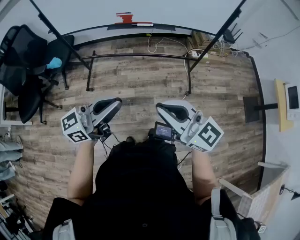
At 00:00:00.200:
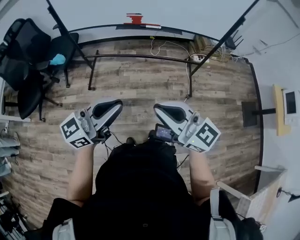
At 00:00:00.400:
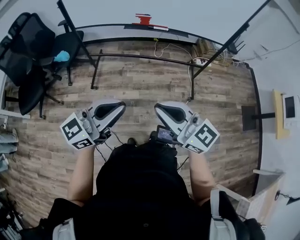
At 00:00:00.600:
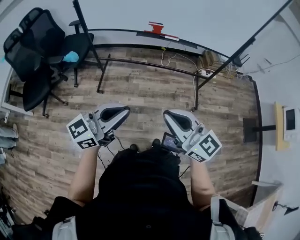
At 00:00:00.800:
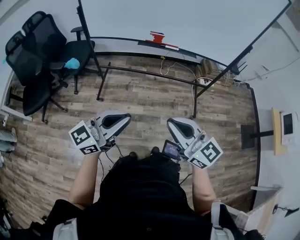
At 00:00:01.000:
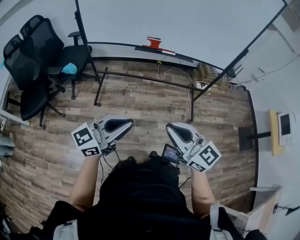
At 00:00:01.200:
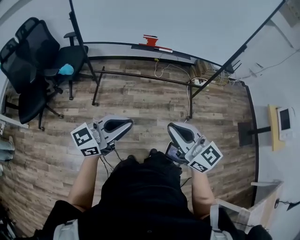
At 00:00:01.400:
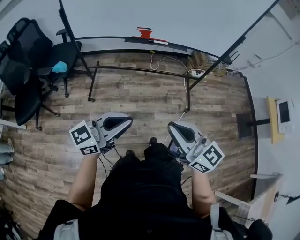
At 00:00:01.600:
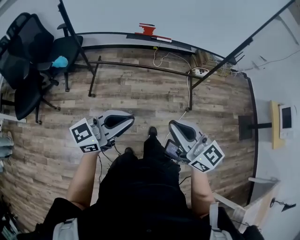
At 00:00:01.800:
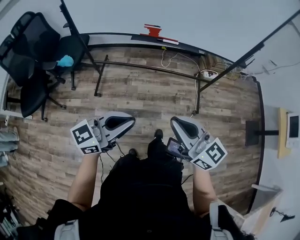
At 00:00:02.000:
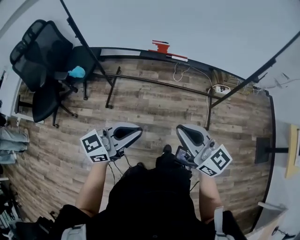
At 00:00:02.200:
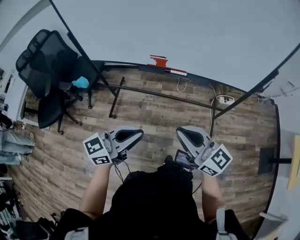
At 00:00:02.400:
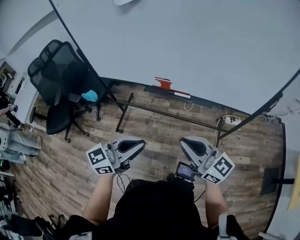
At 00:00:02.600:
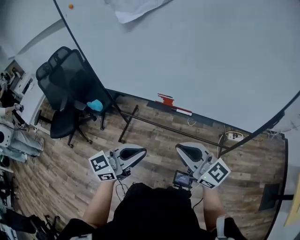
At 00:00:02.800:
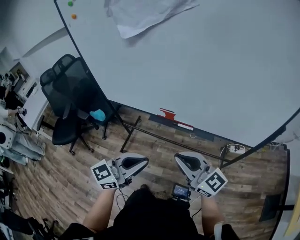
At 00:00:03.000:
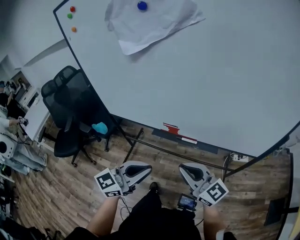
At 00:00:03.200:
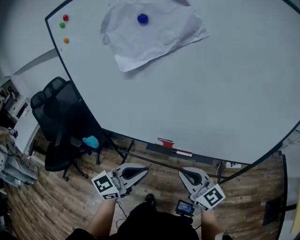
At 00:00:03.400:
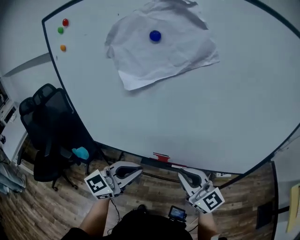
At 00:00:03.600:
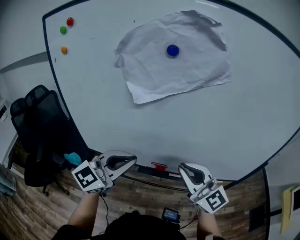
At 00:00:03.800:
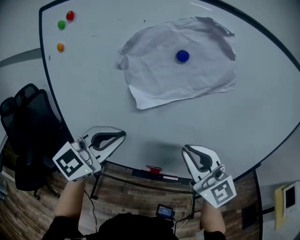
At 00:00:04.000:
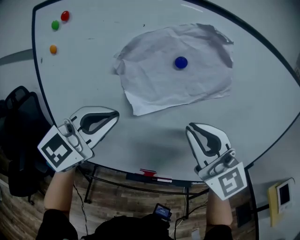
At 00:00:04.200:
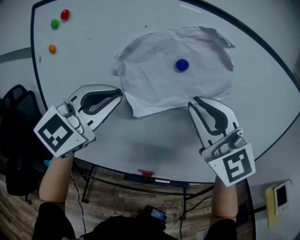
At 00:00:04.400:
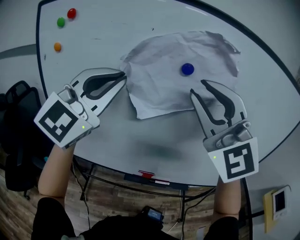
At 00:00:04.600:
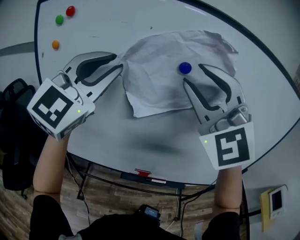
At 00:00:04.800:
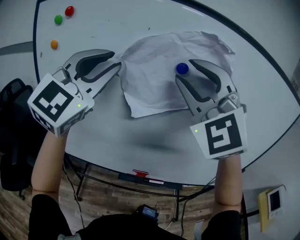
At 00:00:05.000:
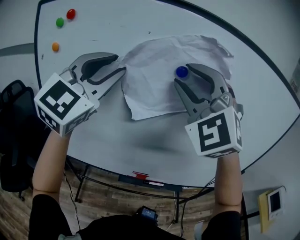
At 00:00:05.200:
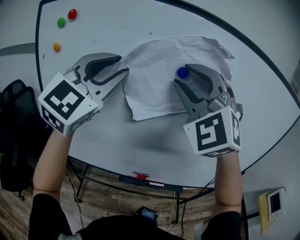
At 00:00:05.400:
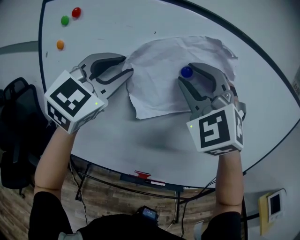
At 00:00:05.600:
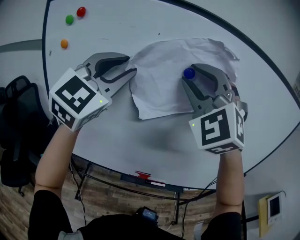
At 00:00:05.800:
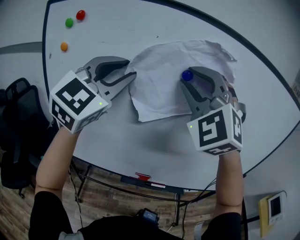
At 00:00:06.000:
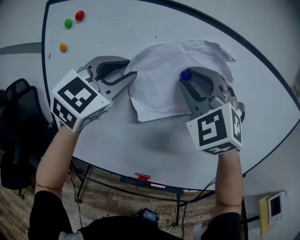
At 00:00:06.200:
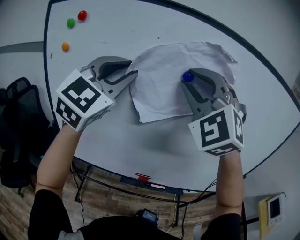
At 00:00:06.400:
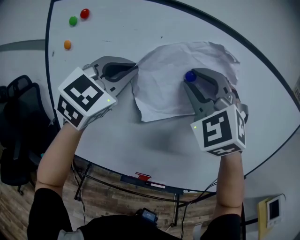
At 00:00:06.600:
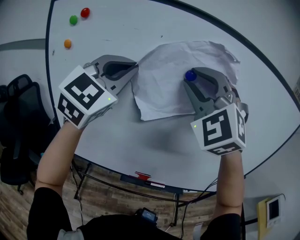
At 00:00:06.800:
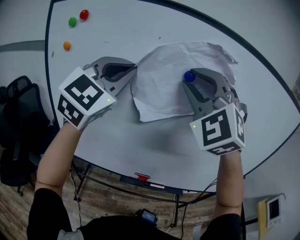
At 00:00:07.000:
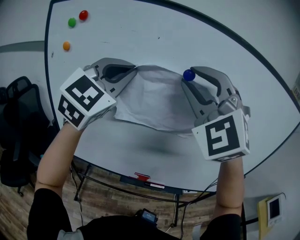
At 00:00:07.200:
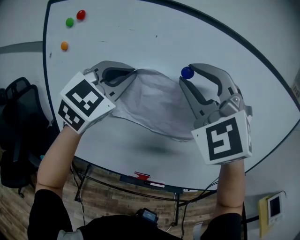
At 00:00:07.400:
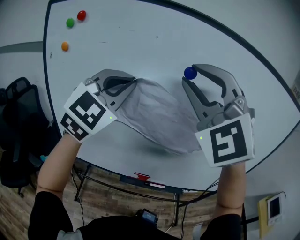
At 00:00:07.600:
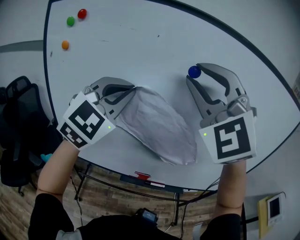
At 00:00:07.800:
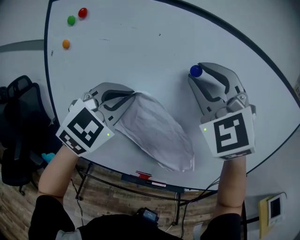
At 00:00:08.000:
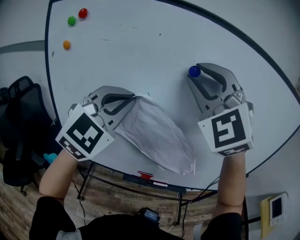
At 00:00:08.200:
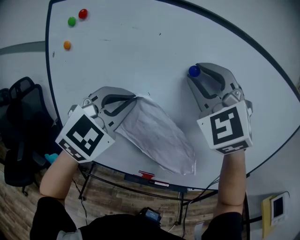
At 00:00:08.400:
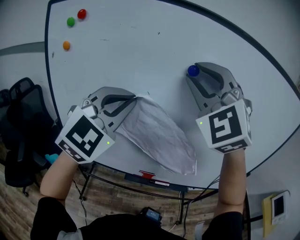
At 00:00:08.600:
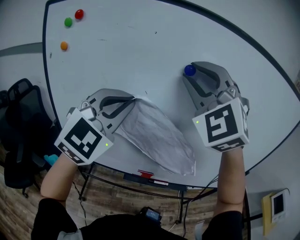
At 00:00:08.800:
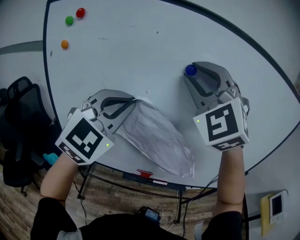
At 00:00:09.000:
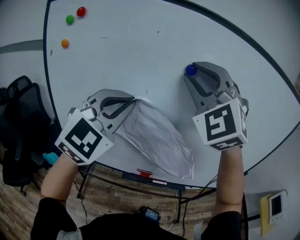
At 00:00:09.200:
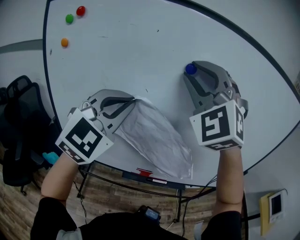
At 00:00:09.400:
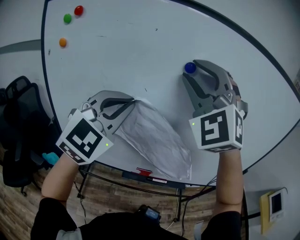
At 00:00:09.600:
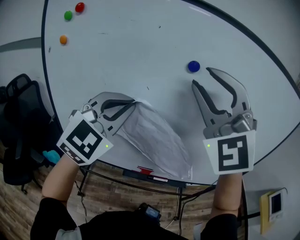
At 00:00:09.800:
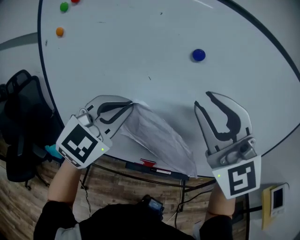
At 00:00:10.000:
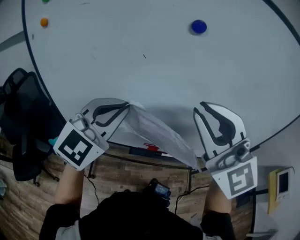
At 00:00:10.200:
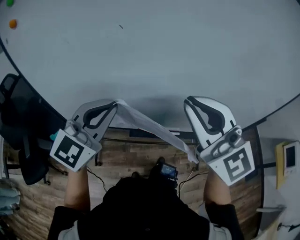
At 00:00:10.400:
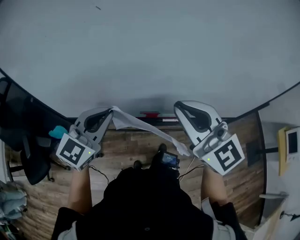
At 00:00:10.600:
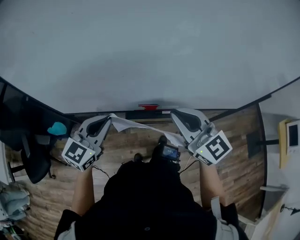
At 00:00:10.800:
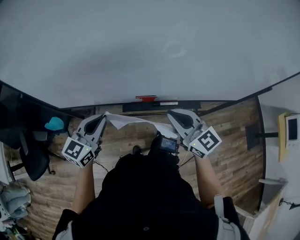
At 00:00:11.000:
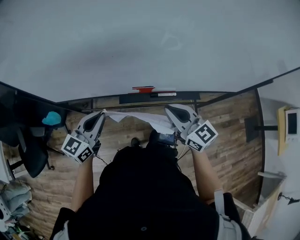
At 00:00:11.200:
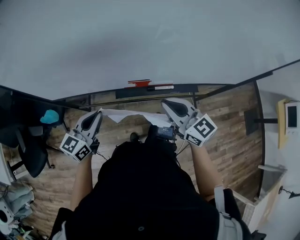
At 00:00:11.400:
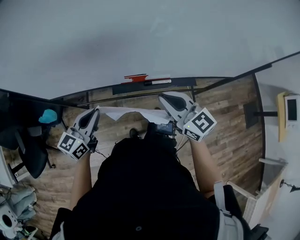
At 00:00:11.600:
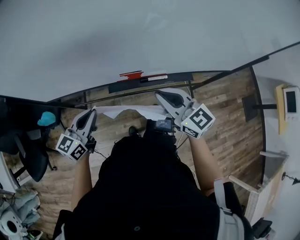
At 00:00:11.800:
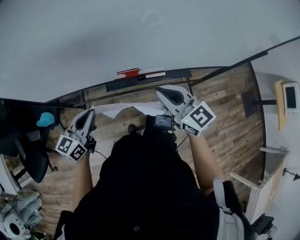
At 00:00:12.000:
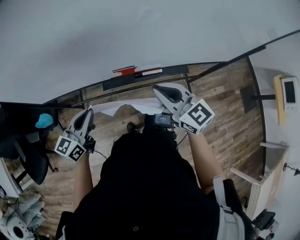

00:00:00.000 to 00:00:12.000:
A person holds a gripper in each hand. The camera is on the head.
00:00:00.000 to 00:00:01.600: Both grippers travel together to the left, roughly 5 cm.
00:00:01.600 to 00:00:03.000: Both grippers move forward, approximately 30 cm. The right gripper changes its angle by roughly 20 degrees; the left gripper swivels roughly 20 degrees.
00:00:03.000 to 00:00:04.400: The right gripper moves upward and forward, some 50 cm, and rotates around the line of its fingers by some 60 degrees, counterclockwise from behind. Meanwhile the left gripper heads upward, forward and to the left, covering roughly 50 cm, and rolls clockwise, seen from behind, by some 40 degrees.
00:00:04.400 to 00:00:06.000: The right gripper shifts roughly 5 cm forward, and swivels some 30 degrees. The left gripper opens up.
00:00:06.000 to 00:00:07.600: The left gripper goes approximately 5 cm downward, and closes its fingers.
00:00:07.600 to 00:00:09.000: The grippers make only small movements.
00:00:09.000 to 00:00:10.400: Both grippers move downward, approximately 25 cm. The left gripper changes its angle by roughly 30 degrees; the right gripper rotates around the line of its fingers by about 60 degrees, clockwise from behind, and closes.
00:00:10.400 to 00:00:12.000: The grippers both shift downward by about 20 cm. The right gripper rotates about 20 degrees; the left gripper turns by roughly 30 degrees.

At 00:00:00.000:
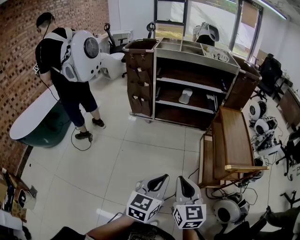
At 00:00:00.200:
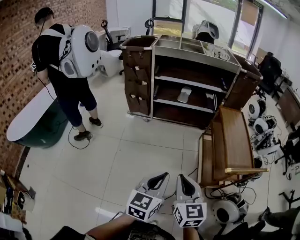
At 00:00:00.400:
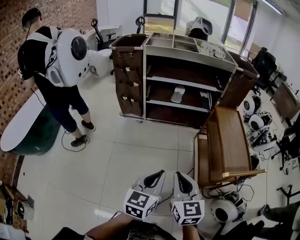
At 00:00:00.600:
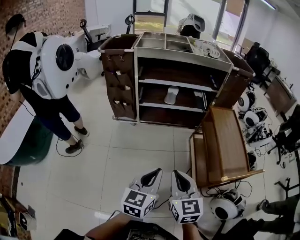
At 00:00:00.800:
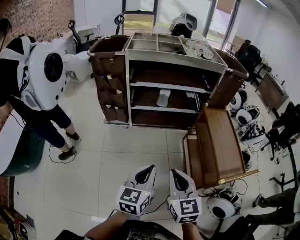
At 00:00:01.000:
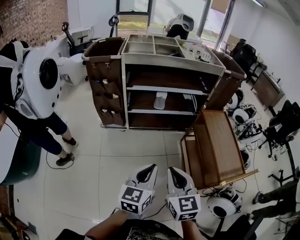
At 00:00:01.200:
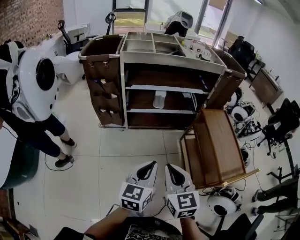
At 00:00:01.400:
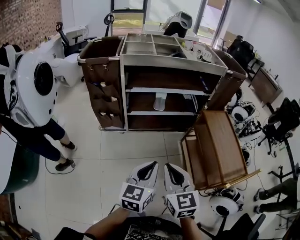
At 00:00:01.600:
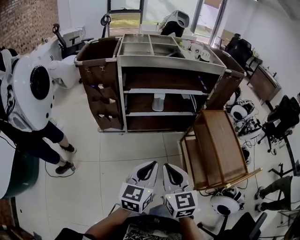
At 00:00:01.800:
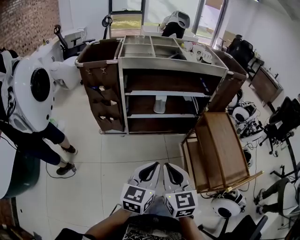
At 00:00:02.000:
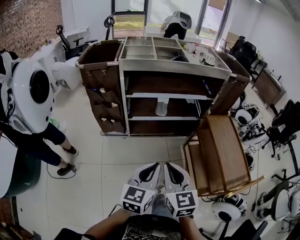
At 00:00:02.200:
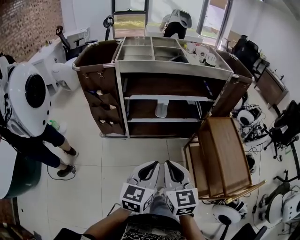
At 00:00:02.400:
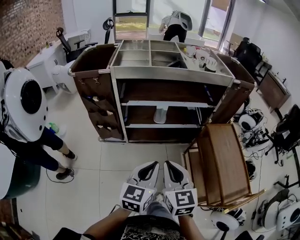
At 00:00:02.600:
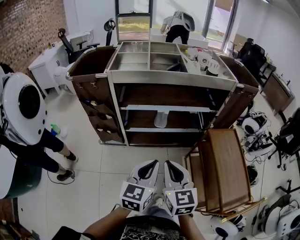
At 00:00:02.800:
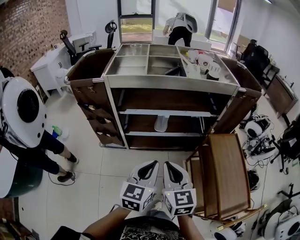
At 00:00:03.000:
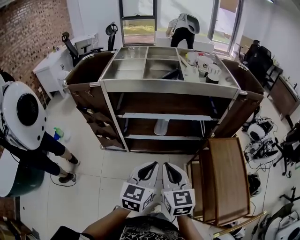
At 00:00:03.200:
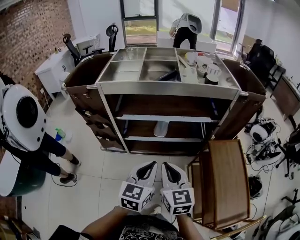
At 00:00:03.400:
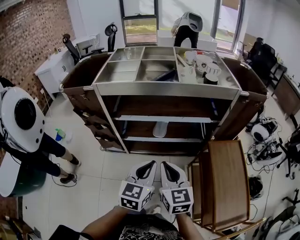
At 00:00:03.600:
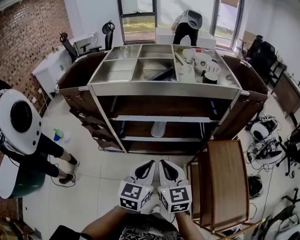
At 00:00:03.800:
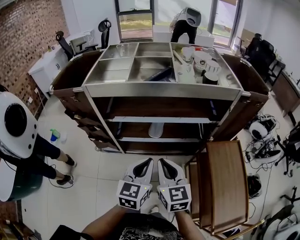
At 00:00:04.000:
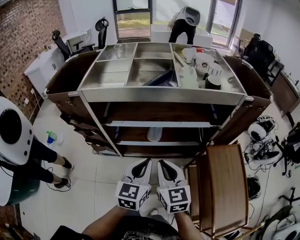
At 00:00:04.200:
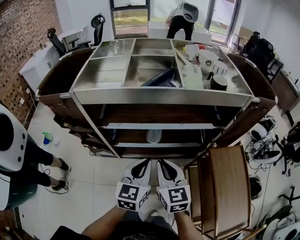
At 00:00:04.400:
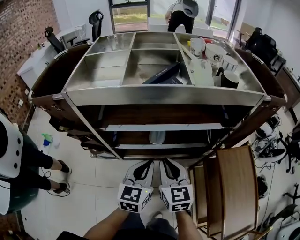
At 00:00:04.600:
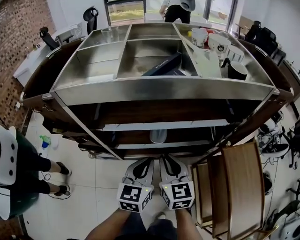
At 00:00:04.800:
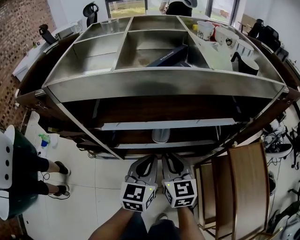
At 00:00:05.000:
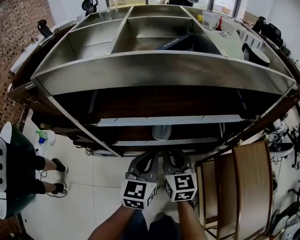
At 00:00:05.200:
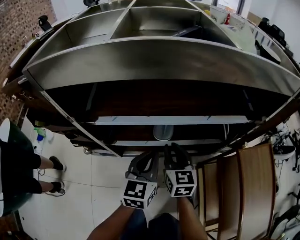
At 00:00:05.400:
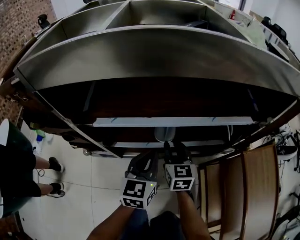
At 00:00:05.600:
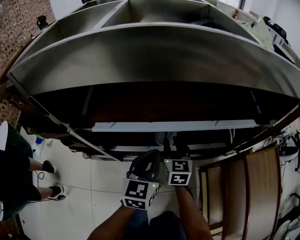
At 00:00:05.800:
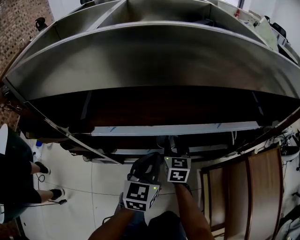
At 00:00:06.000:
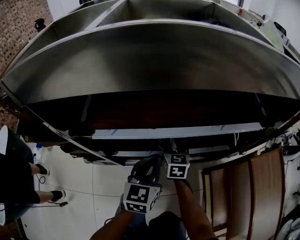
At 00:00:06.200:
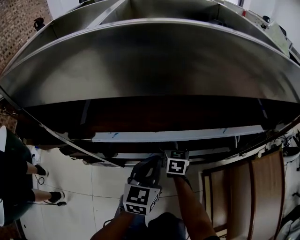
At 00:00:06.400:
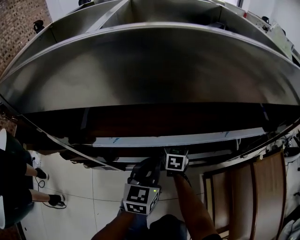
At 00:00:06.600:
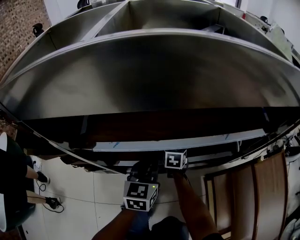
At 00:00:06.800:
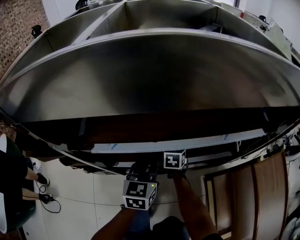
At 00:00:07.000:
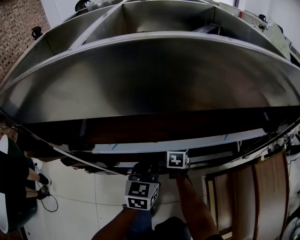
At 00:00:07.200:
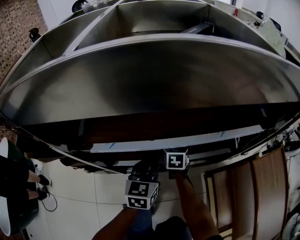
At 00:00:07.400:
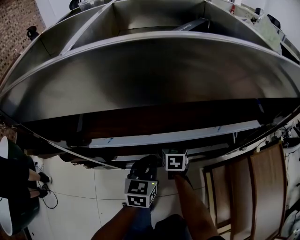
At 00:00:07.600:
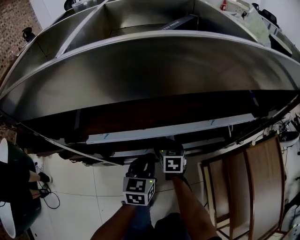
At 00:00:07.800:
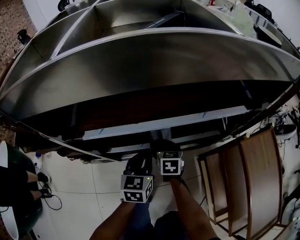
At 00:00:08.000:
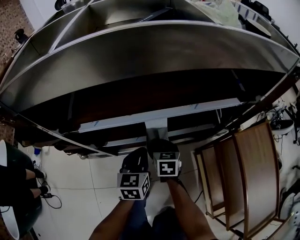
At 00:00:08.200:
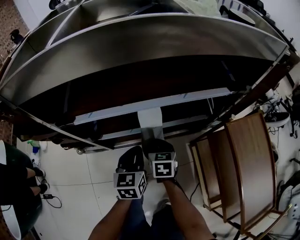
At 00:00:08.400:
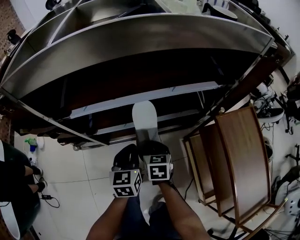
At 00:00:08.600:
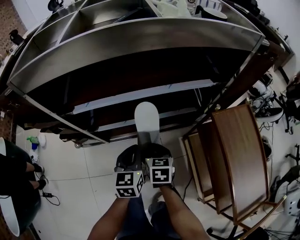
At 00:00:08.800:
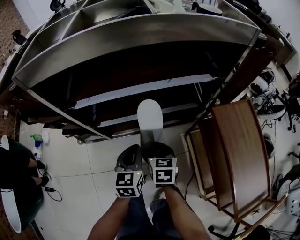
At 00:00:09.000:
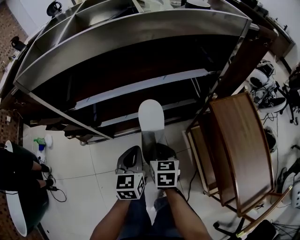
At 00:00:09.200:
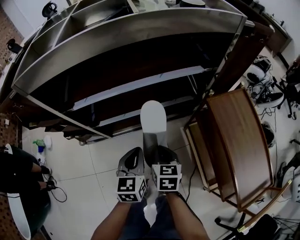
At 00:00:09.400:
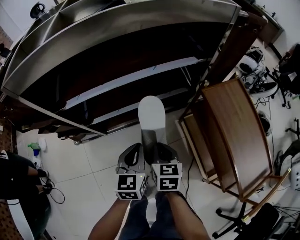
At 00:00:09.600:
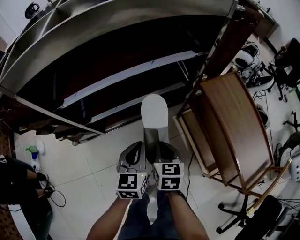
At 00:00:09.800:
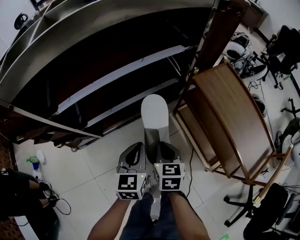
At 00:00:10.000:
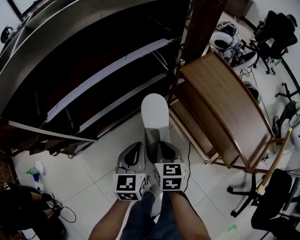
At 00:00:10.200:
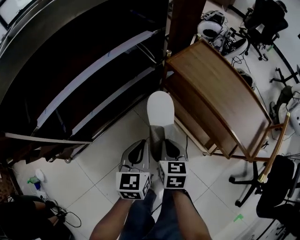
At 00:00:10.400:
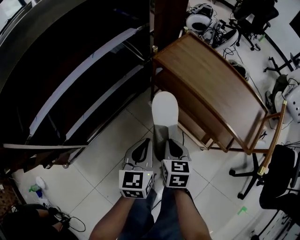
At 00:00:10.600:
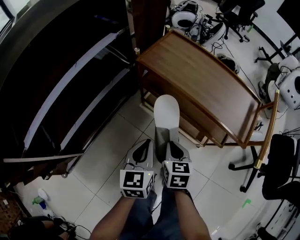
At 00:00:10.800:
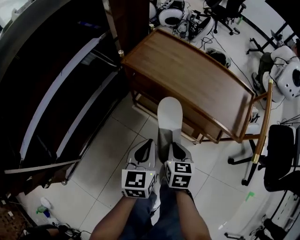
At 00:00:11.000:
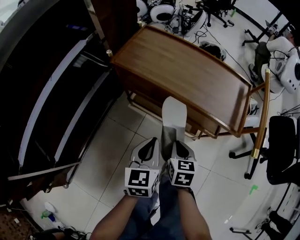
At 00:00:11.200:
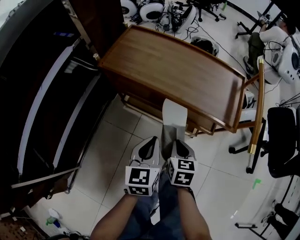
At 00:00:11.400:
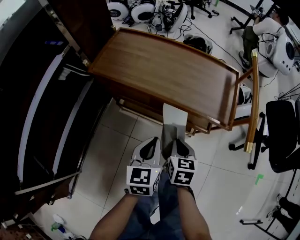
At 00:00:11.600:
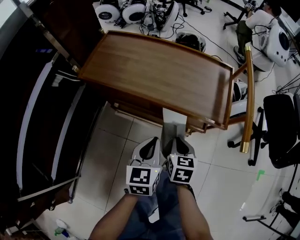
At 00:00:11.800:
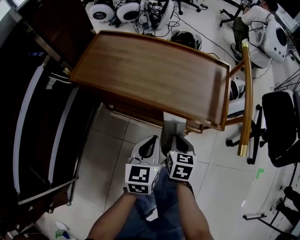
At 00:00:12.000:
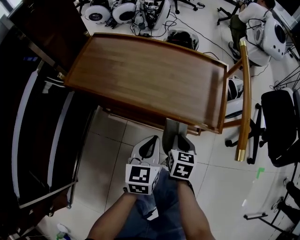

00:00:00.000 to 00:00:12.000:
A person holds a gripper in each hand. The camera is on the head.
00:00:00.000 to 00:00:01.600: The right gripper travels forward and to the left by some 35 cm, while the left gripper goes about 30 cm forward.
00:00:01.600 to 00:00:03.000: Both grippers move forward, approximately 25 cm.
00:00:03.000 to 00:00:04.400: Both grippers travel together forward and downward, roughly 25 cm.
00:00:04.400 to 00:00:06.000: The left gripper shifts about 20 cm downward and forward, while the right gripper moves downward and forward, some 35 cm, and opens up.
00:00:06.000 to 00:00:07.600: The right gripper closes its fingers.
00:00:07.600 to 00:00:09.000: Both grippers move backward and upward, approximately 25 cm.
00:00:09.000 to 00:00:10.400: The left gripper shifts by some 20 cm, and changes its angle by some 40 degrees, while the right gripper moves approximately 20 cm, and swivels about 40 degrees.
00:00:10.400 to 00:00:12.000: The left gripper changes place by about 30 cm, and changes its angle by roughly 30 degrees, while the right gripper changes place by approximately 30 cm, and rotates approximately 40 degrees.
